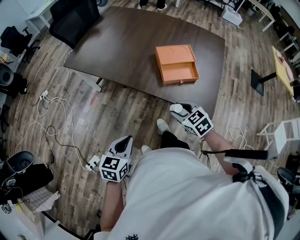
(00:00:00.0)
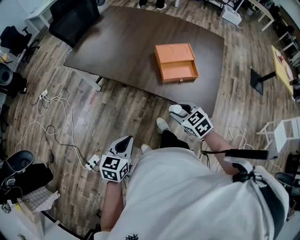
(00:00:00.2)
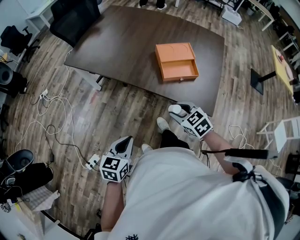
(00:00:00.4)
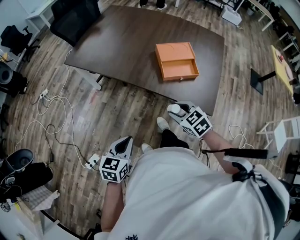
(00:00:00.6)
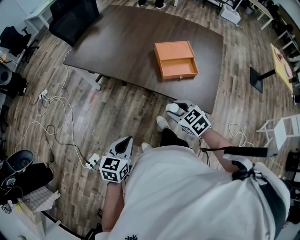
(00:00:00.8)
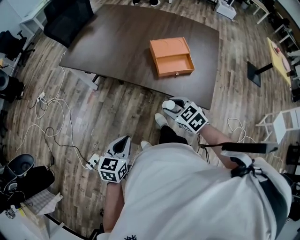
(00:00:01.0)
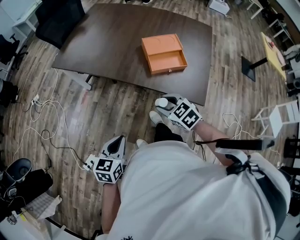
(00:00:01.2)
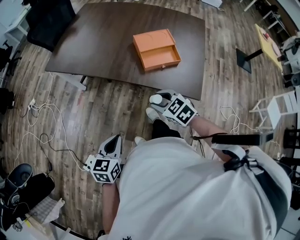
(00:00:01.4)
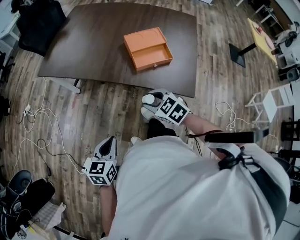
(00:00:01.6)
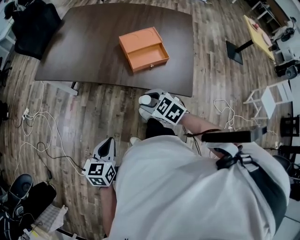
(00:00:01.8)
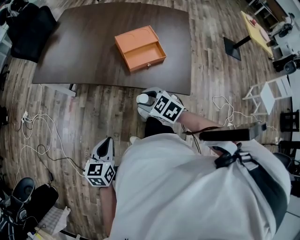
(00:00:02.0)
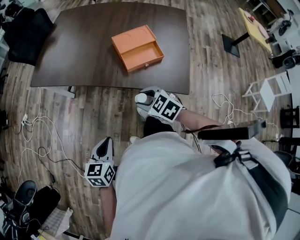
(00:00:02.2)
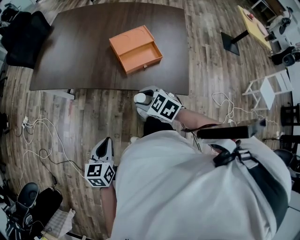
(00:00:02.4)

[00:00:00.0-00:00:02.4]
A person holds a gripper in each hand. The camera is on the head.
00:00:00.0 to 00:00:02.4: The grippers stay close to where they were, moving slightly.

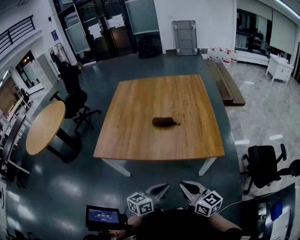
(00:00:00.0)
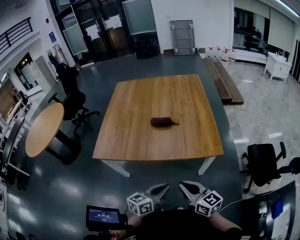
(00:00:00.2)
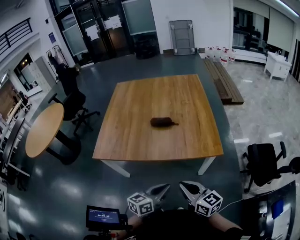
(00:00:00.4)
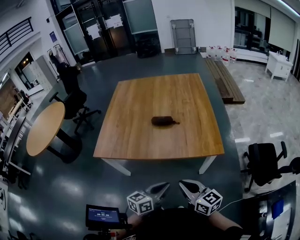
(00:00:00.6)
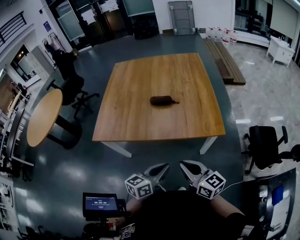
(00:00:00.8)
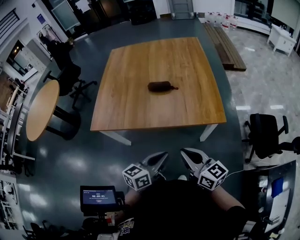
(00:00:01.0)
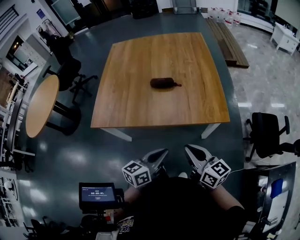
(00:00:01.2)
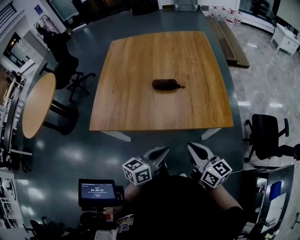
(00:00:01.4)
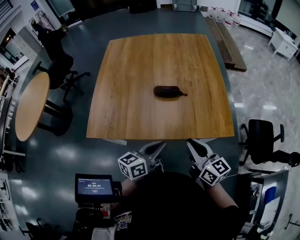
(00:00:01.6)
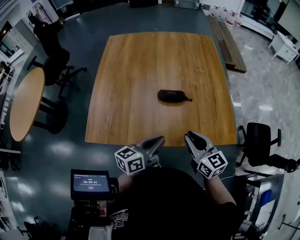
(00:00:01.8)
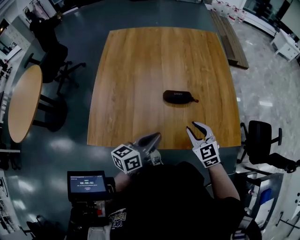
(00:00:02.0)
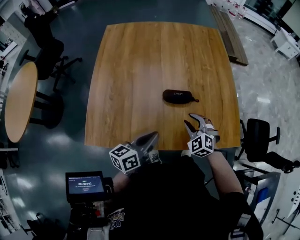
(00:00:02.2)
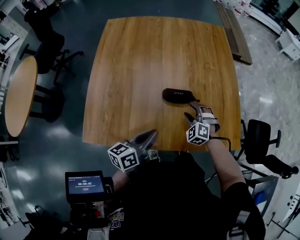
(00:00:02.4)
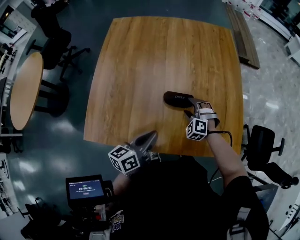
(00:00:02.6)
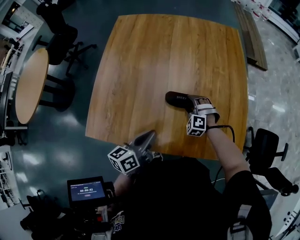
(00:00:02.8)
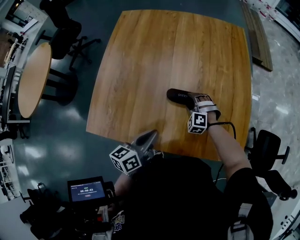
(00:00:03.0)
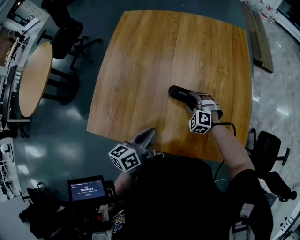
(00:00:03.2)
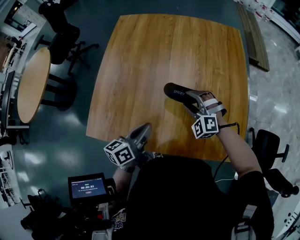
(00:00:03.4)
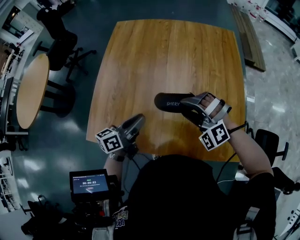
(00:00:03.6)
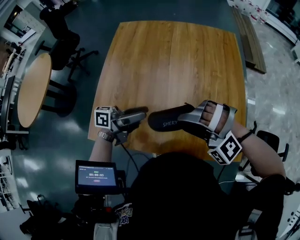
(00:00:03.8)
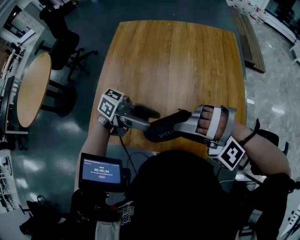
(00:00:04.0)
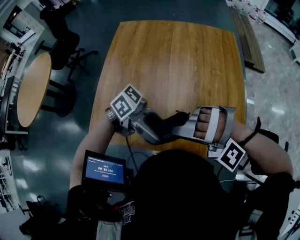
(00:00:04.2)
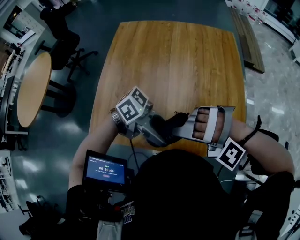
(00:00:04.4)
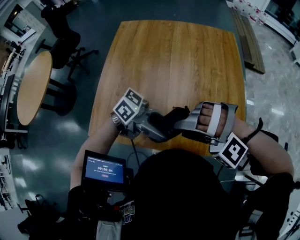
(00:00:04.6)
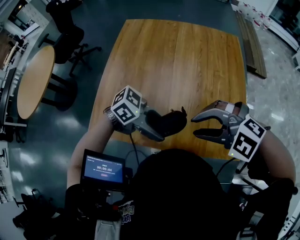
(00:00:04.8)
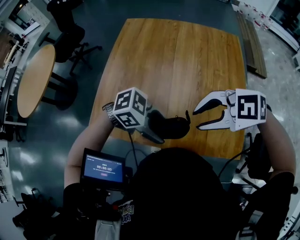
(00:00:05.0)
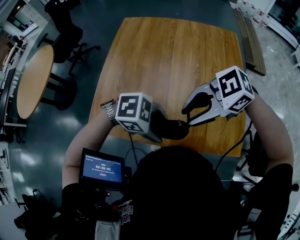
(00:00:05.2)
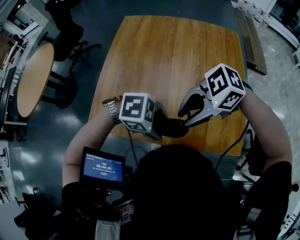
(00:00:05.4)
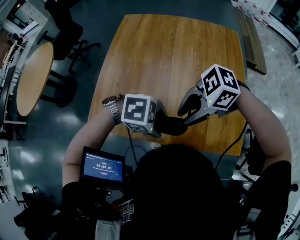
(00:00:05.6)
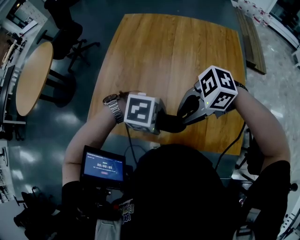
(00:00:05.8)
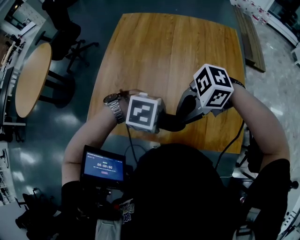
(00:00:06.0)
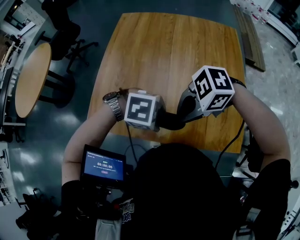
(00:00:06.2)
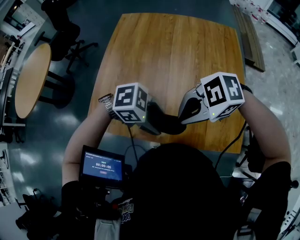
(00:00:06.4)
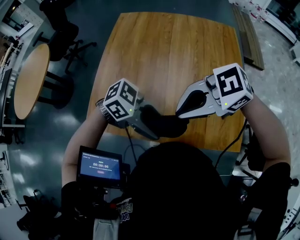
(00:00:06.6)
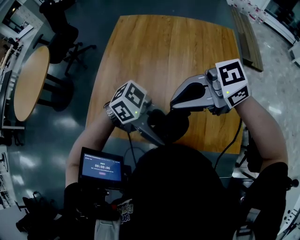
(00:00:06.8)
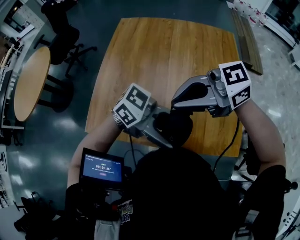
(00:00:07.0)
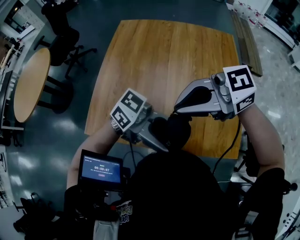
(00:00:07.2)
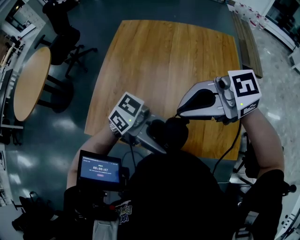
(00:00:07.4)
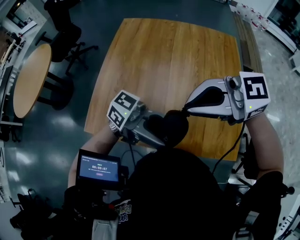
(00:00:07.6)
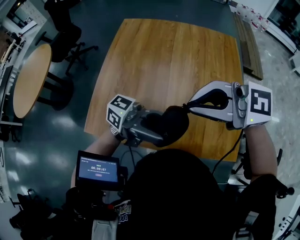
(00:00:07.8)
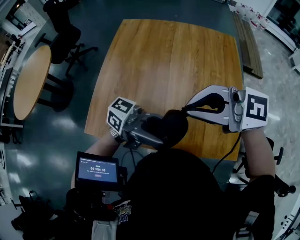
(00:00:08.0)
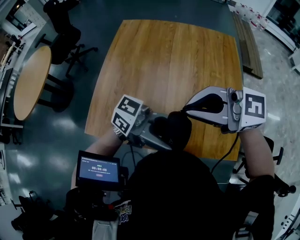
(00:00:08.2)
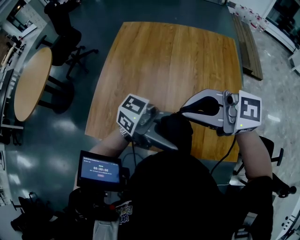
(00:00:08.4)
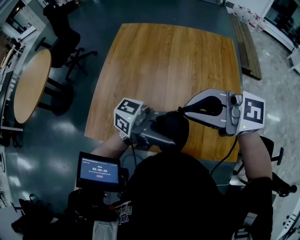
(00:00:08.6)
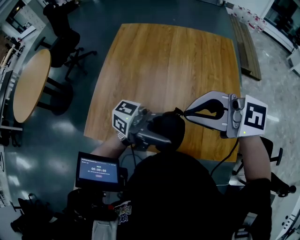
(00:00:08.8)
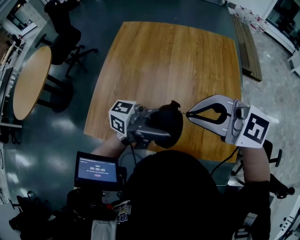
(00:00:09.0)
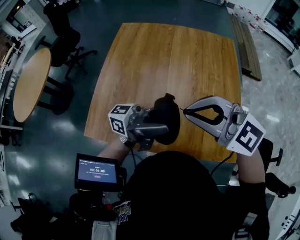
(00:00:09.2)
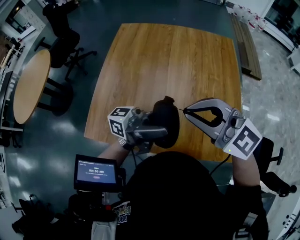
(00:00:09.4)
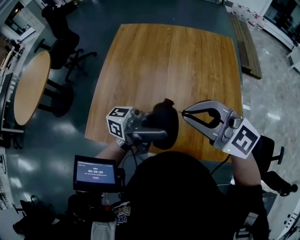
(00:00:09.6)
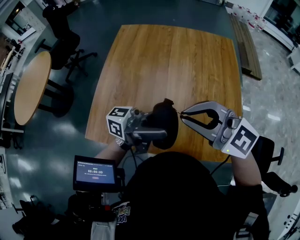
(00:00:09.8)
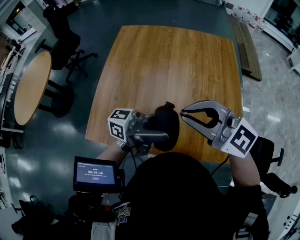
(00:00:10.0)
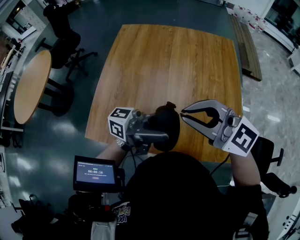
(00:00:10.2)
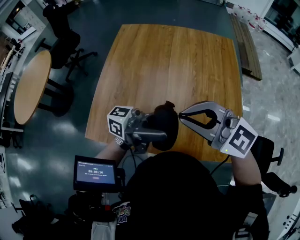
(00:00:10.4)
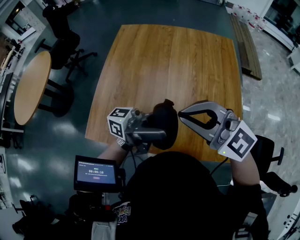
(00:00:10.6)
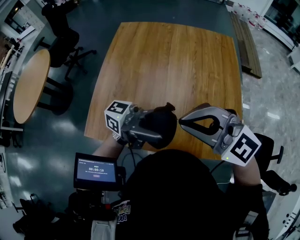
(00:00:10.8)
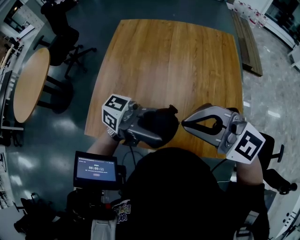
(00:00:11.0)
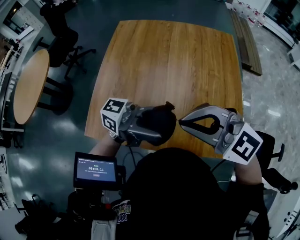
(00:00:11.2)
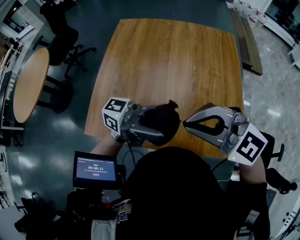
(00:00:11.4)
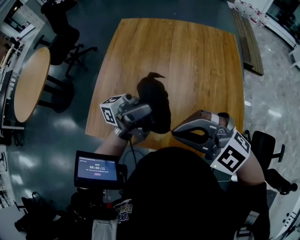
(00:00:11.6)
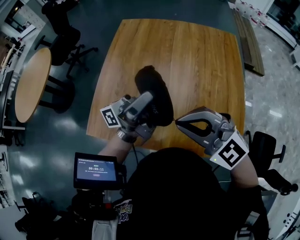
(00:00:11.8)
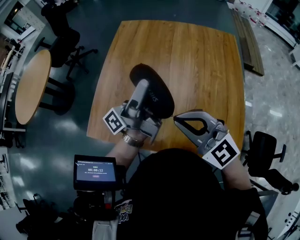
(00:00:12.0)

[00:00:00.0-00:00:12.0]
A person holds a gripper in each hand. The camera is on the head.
00:00:00.0 to 00:00:01.6: The left gripper moves forward and to the left, approximately 15 cm; the right gripper heads forward, covering approximately 15 cm.
00:00:01.6 to 00:00:03.0: The right gripper moves forward and downward, some 35 cm, twists some 90 degrees counterclockwise, seen from behind, and opens its fingers; the left gripper is displaced forward and to the left by about 15 cm, and turns by about 20 degrees.
00:00:03.0 to 00:00:04.4: The right gripper shifts about 30 cm upward, and rolls counterclockwise, seen from behind, by approximately 50 degrees; the left gripper moves upward, approximately 10 cm, swivels some 90 degrees, and opens.
00:00:04.4 to 00:00:06.0: The right gripper rotates around the line of its fingers by some 80 degrees, clockwise from behind, and closes its fingers. Meanwhile the left gripper heads downward, covering about 10 cm, and tilts its fingers approximately 60 degrees downward.
00:00:06.0 to 00:00:07.6: Both grippers move upward, some 15 cm. The right gripper rotates roughly 50 degrees. The left gripper tilts its fingers about 80 degrees upward.
00:00:07.6 to 00:00:09.0: The right gripper changes its angle by about 30 degrees. The left gripper changes its angle by some 20 degrees.
00:00:09.0 to 00:00:10.4: The grippers stay close to where they were, moving slightly.
00:00:10.4 to 00:00:12.0: The right gripper heads downward, covering some 5 cm. The left gripper ends up some 15 cm from where it was, and rotates about 50 degrees.

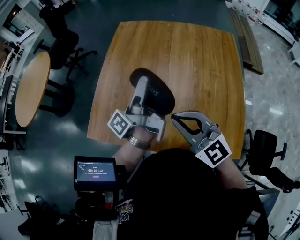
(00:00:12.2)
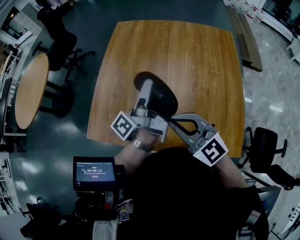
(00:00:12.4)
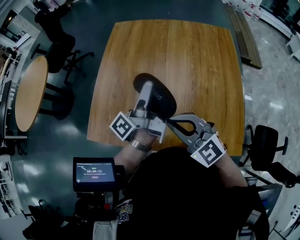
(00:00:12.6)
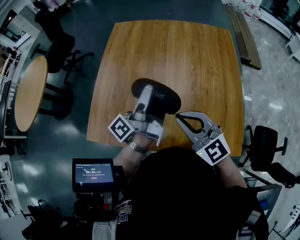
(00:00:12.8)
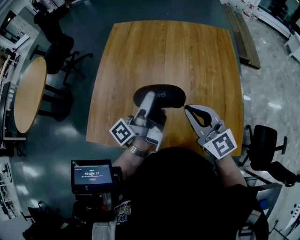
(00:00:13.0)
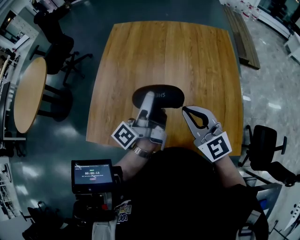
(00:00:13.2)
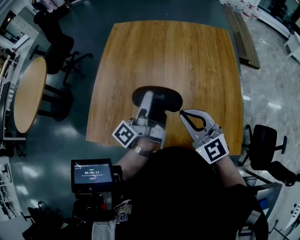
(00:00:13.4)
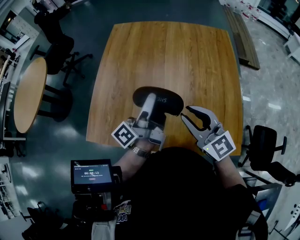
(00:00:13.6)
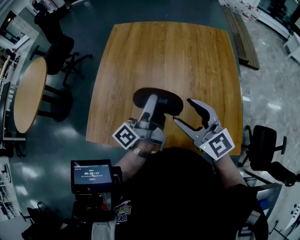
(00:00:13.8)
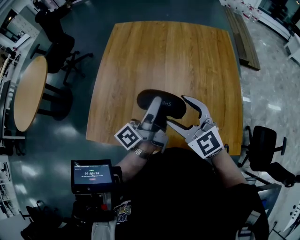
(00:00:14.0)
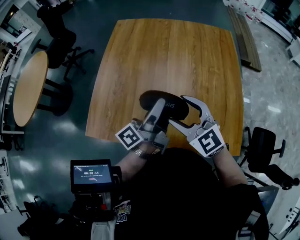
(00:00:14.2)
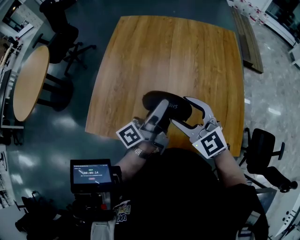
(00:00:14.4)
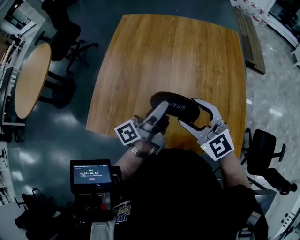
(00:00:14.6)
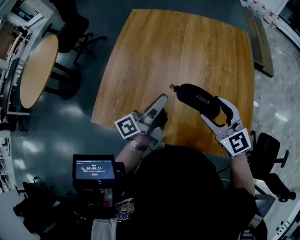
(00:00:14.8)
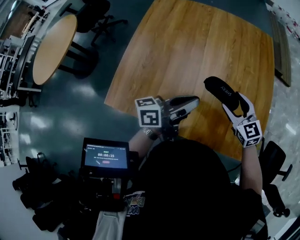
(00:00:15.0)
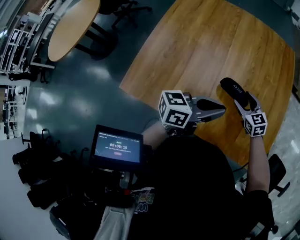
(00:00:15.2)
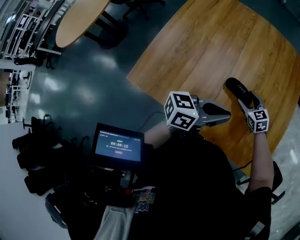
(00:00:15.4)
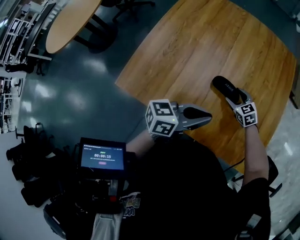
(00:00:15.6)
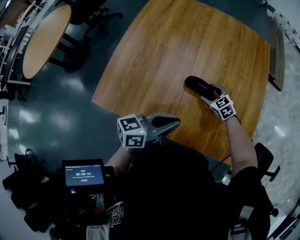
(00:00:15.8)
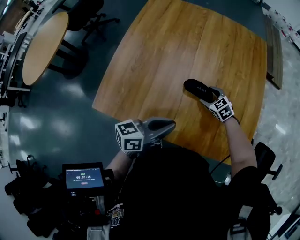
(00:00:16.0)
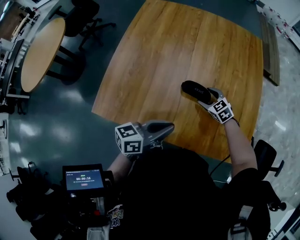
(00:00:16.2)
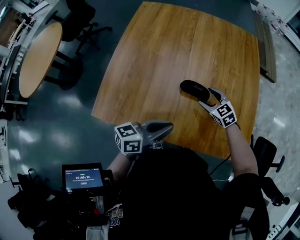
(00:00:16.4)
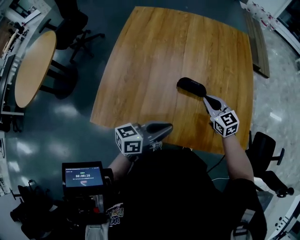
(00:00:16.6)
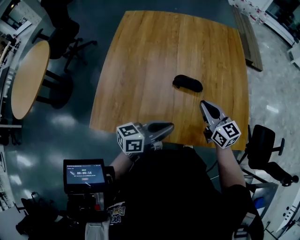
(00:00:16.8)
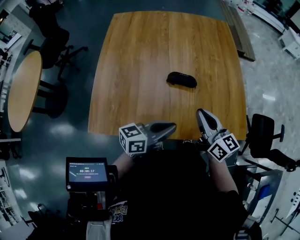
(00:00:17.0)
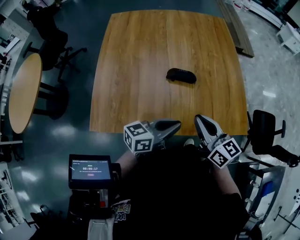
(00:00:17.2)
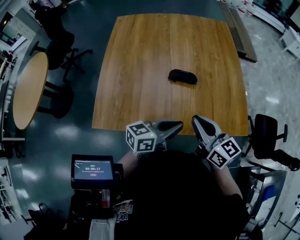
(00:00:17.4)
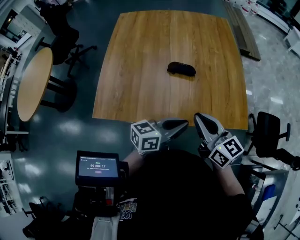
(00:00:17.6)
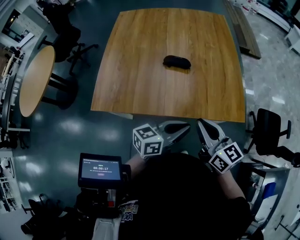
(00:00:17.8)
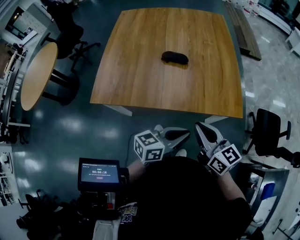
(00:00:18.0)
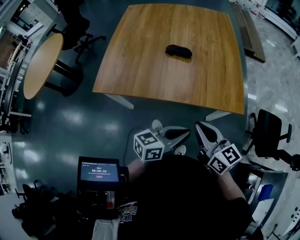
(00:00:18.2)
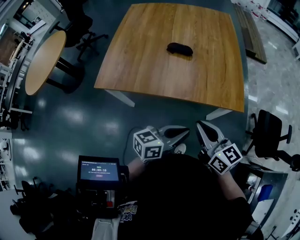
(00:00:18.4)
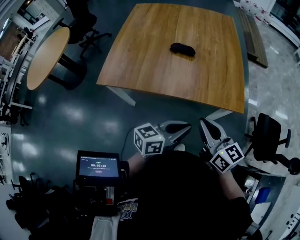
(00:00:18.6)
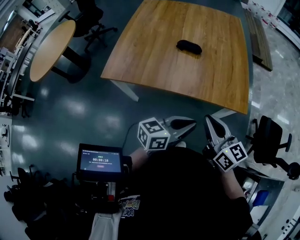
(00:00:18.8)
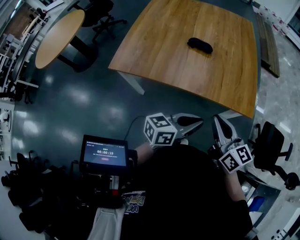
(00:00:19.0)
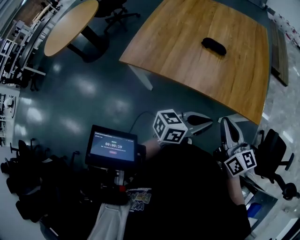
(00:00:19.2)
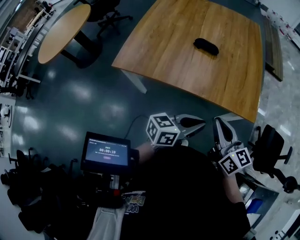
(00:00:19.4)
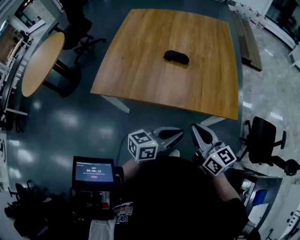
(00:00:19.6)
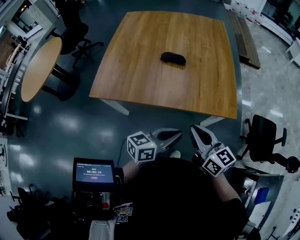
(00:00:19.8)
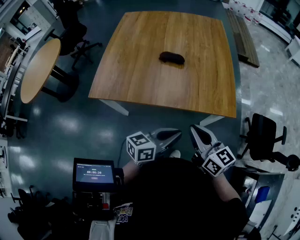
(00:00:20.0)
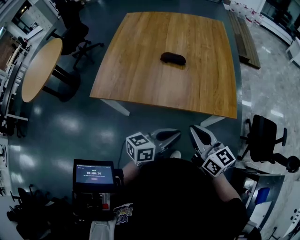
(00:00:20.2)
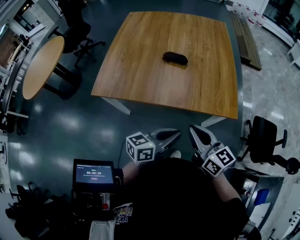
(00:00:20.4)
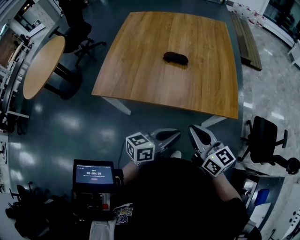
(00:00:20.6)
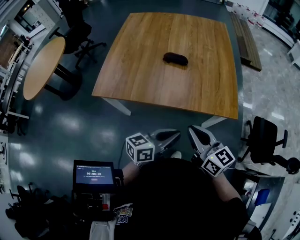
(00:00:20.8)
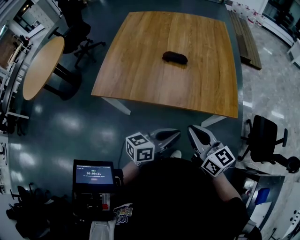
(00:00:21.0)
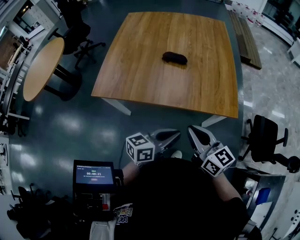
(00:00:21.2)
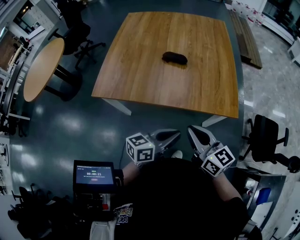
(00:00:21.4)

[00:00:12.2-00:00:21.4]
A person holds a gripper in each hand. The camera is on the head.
00:00:12.2 to 00:00:13.8: The left gripper heads downward, covering roughly 5 cm. The right gripper moves approximately 5 cm, and opens its fingers.
00:00:13.8 to 00:00:15.2: The right gripper travels downward, to the right and forward by about 25 cm, and rotates roughly 30 degrees. The left gripper travels to the right and backward by approximately 10 cm, changes its angle by approximately 50 degrees, and closes up.
00:00:15.2 to 00:00:16.8: The left gripper moves to the left, backward and downward, about 15 cm, while the right gripper shifts roughly 15 cm upward, backward and to the left, rotates approximately 30 degrees, and closes its fingers.
00:00:16.8 to 00:00:18.4: Both grippers move backward and to the right, approximately 30 cm.
00:00:18.4 to 00:00:21.4: The grippers make only small movements.
